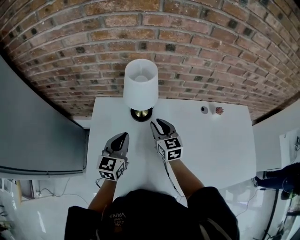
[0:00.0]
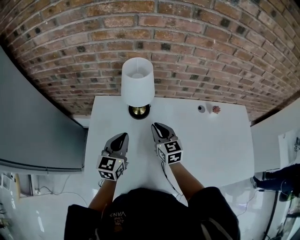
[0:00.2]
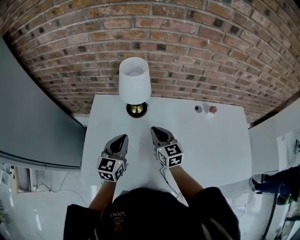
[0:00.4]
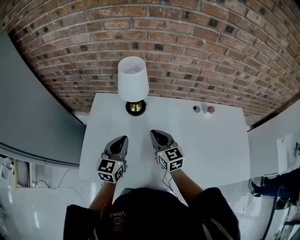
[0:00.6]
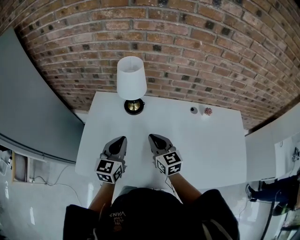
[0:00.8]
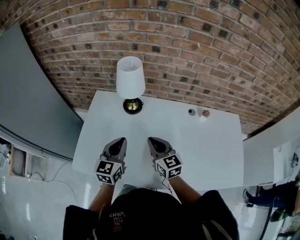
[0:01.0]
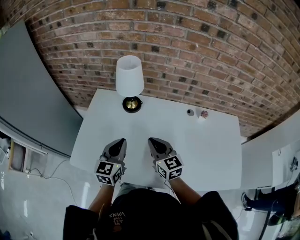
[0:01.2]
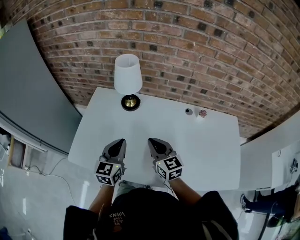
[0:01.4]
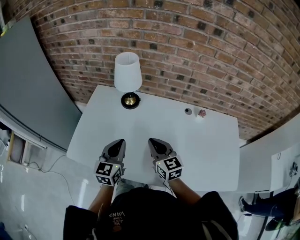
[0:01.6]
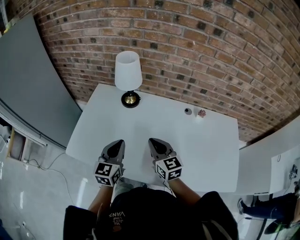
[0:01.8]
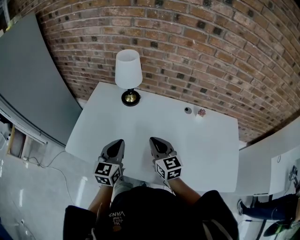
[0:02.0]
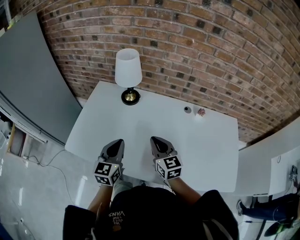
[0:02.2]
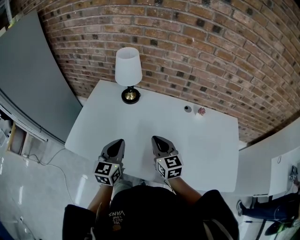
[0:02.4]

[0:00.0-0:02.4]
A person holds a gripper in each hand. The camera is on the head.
0:00.0 to 0:01.2: The left gripper shifts about 15 cm backward and to the right; the right gripper is displaced backward by roughly 20 cm, and closes.
0:01.2 to 0:02.4: The right gripper shifts approximately 5 cm to the right; the left gripper is displaced backward by approximately 5 cm.

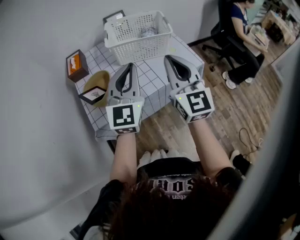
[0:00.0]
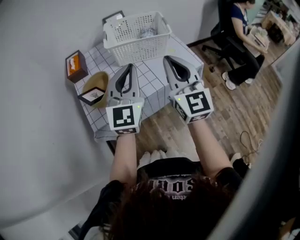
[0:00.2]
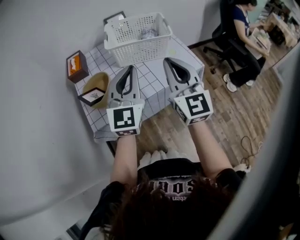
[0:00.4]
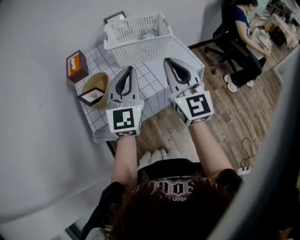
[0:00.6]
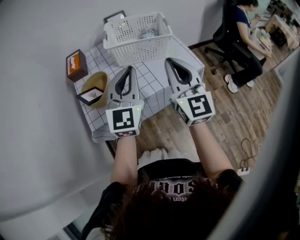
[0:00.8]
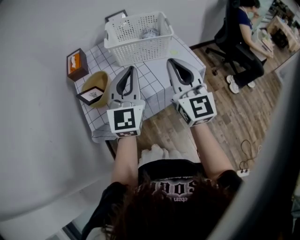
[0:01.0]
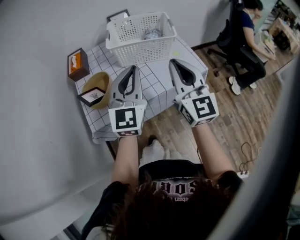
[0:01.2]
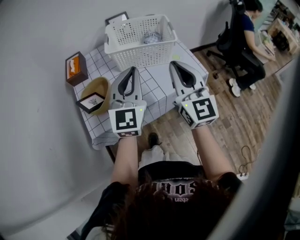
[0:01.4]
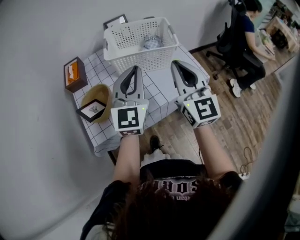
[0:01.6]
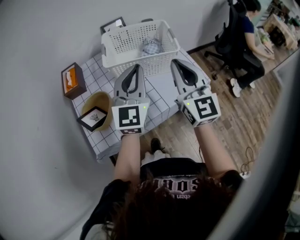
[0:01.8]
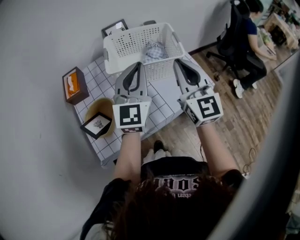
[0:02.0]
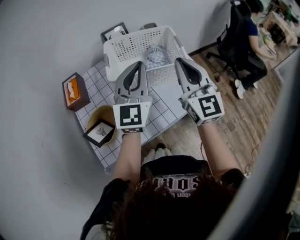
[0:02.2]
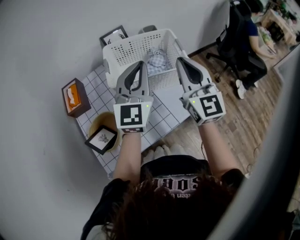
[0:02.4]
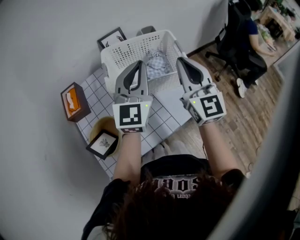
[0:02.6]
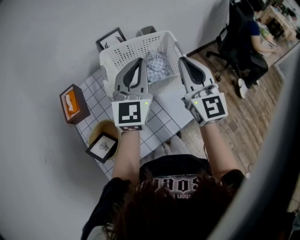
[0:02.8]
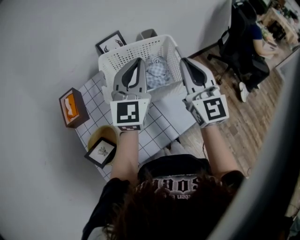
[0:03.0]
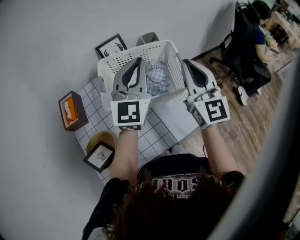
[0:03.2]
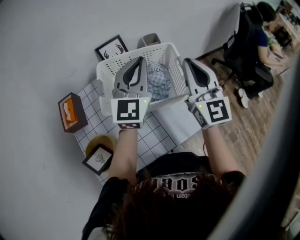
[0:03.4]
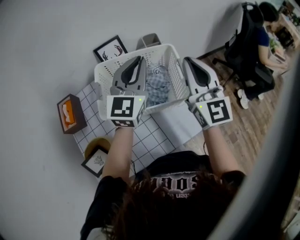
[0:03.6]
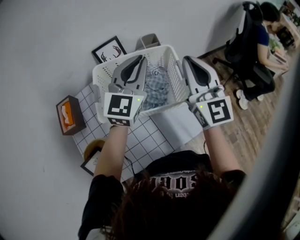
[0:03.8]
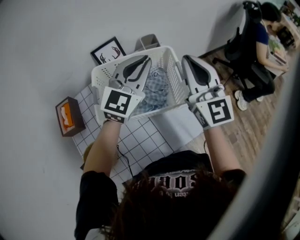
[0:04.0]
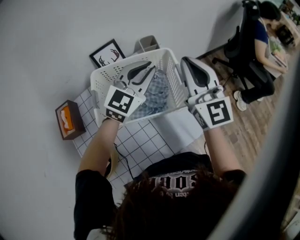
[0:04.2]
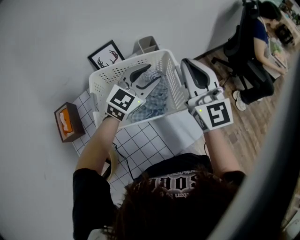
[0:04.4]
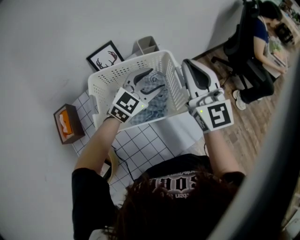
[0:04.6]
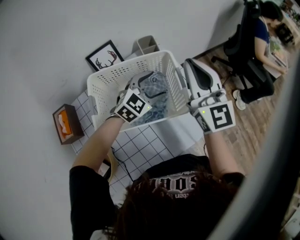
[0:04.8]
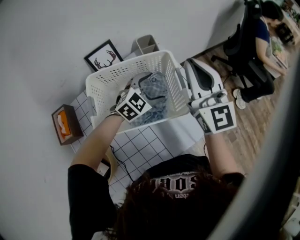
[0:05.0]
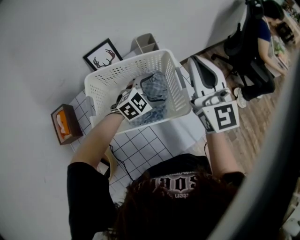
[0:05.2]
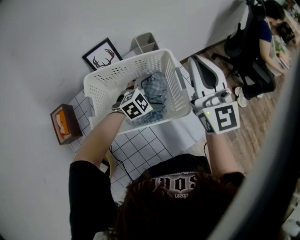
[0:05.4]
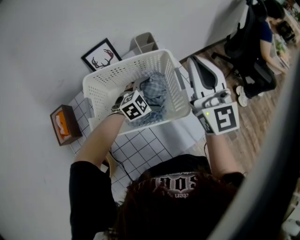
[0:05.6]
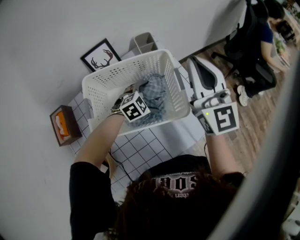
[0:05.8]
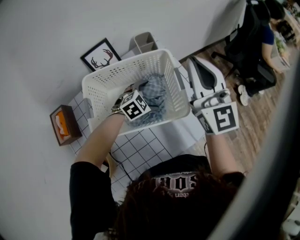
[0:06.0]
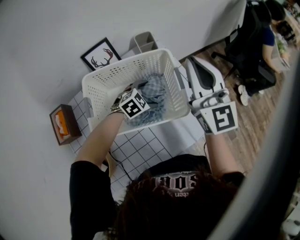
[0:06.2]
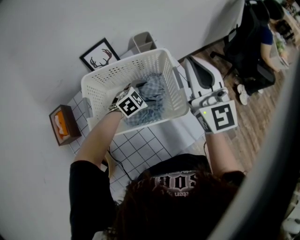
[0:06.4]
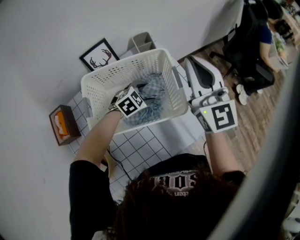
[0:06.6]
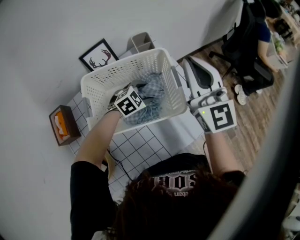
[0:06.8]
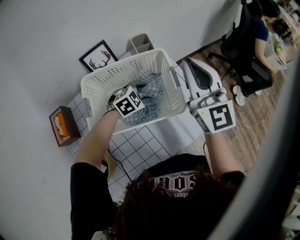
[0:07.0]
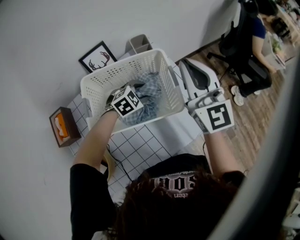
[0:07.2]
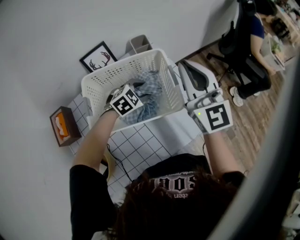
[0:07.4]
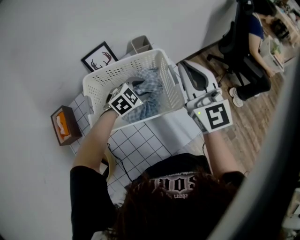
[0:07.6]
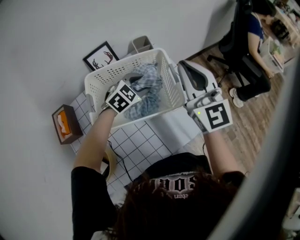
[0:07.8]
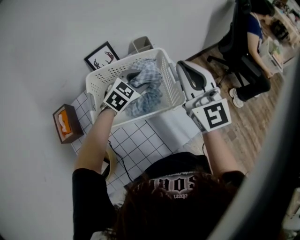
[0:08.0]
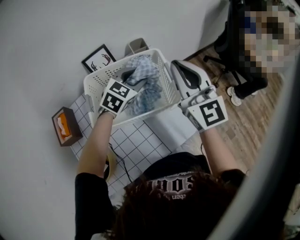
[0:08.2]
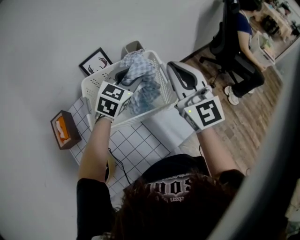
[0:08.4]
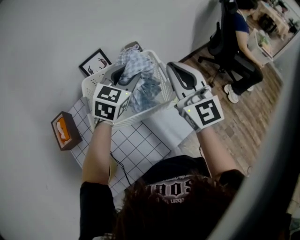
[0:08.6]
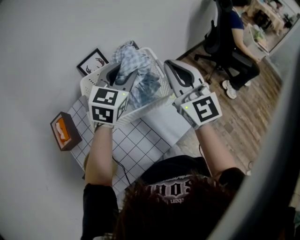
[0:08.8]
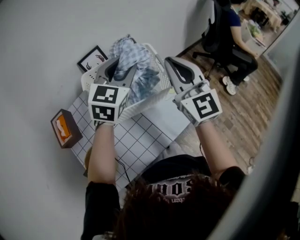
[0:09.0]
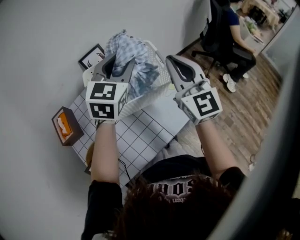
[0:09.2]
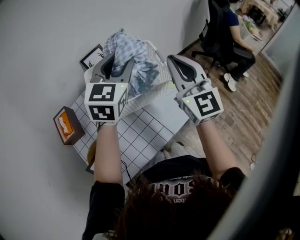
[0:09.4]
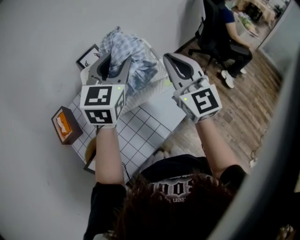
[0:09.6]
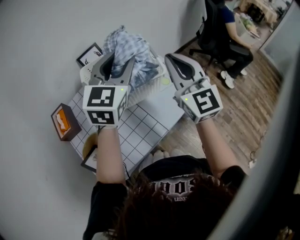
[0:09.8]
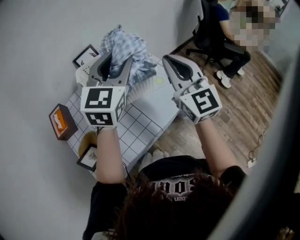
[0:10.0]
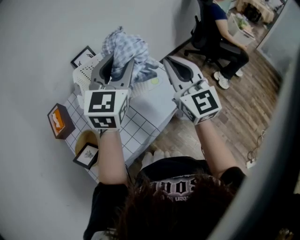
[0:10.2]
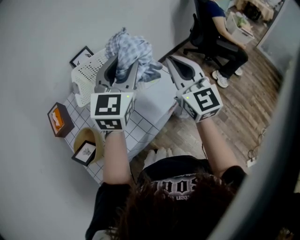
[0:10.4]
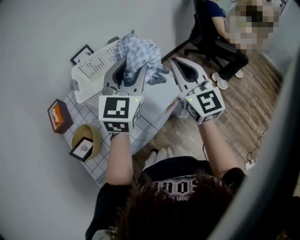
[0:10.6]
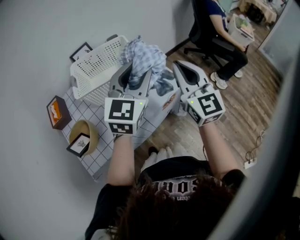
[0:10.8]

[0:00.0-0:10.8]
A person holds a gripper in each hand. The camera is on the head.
0:00.0 to 0:01.6: Both grippers travel together forward, some 10 cm.
0:01.6 to 0:03.0: The two grippers go some 20 cm forward.
0:03.0 to 0:04.6: The left gripper is displaced downward, forward and to the right by roughly 20 cm, changes its angle by some 40 degrees, and opens up; the right gripper shifts roughly 10 cm forward.
0:04.6 to 0:06.2: The left gripper is displaced downward by some 20 cm, tilts its fingers about 30 degrees downward, and opens.
0:06.2 to 0:07.8: The left gripper goes roughly 10 cm upward, and closes its fingers.
0:07.8 to 0:09.2: The left gripper shifts approximately 20 cm upward, and points its fingers some 30 degrees further upward. The right gripper shifts approximately 10 cm backward.
0:09.2 to 0:10.8: The grippers both shift to the right and backward by approximately 20 cm.

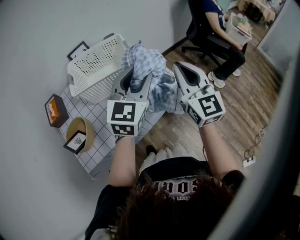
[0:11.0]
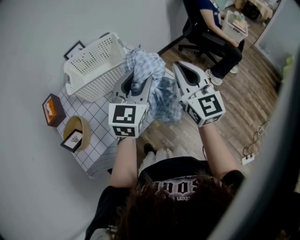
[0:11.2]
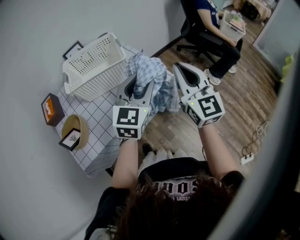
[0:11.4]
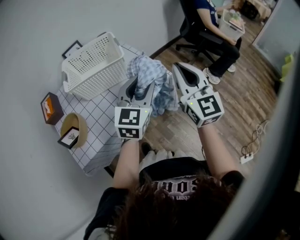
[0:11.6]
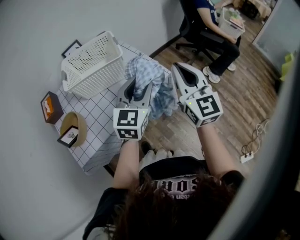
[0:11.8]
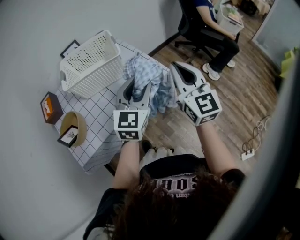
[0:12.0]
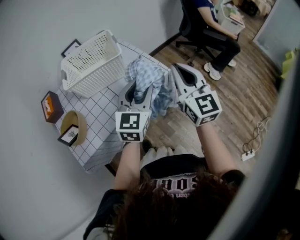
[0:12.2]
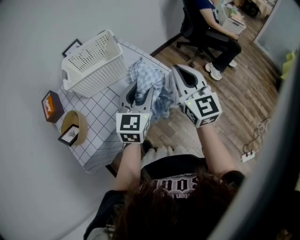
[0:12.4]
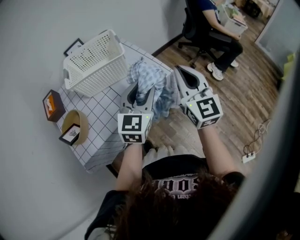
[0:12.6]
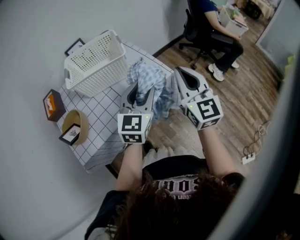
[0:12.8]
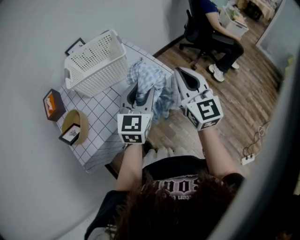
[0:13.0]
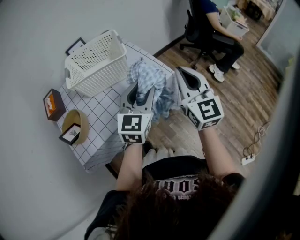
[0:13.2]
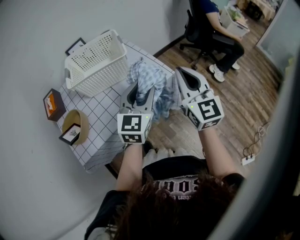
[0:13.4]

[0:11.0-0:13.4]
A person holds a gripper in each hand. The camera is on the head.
0:11.0 to 0:12.2: The right gripper shifts by about 5 cm, while the left gripper shifts approximately 10 cm downward and backward.
0:12.2 to 0:13.4: Both grippers stay put.

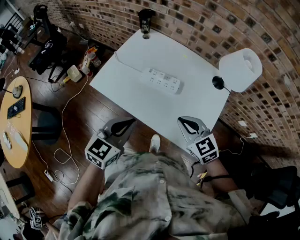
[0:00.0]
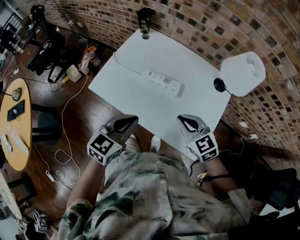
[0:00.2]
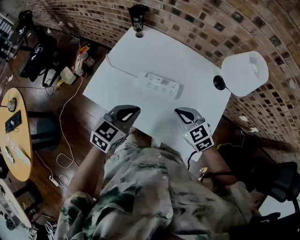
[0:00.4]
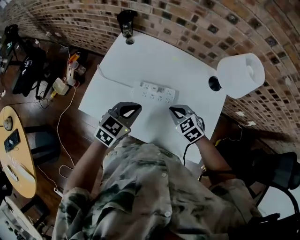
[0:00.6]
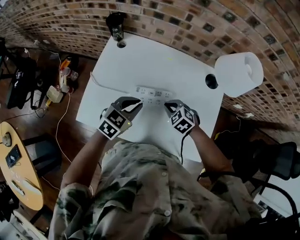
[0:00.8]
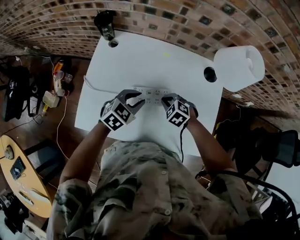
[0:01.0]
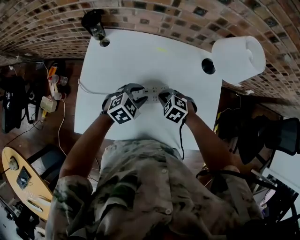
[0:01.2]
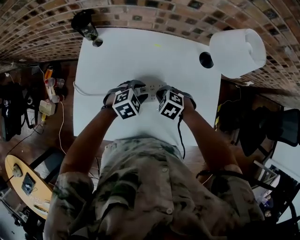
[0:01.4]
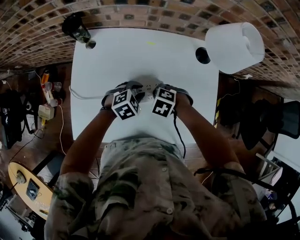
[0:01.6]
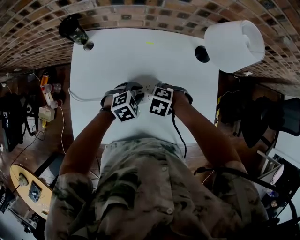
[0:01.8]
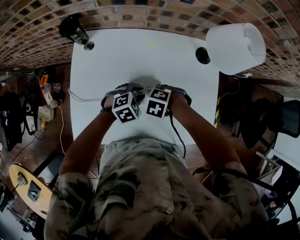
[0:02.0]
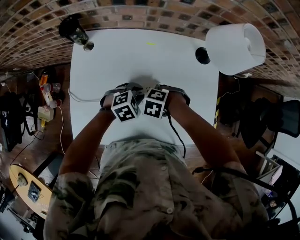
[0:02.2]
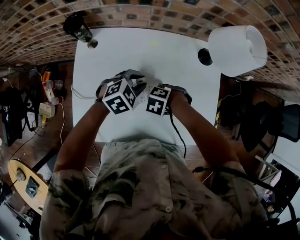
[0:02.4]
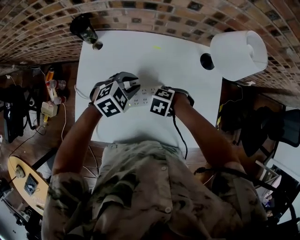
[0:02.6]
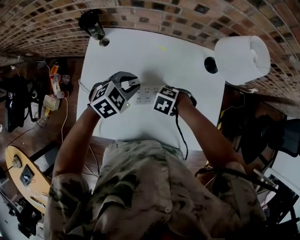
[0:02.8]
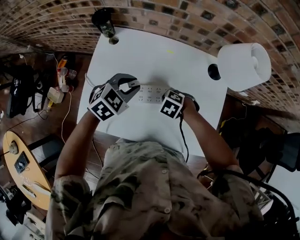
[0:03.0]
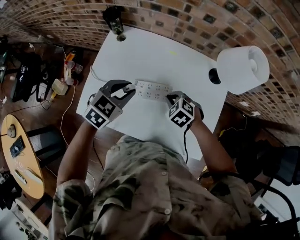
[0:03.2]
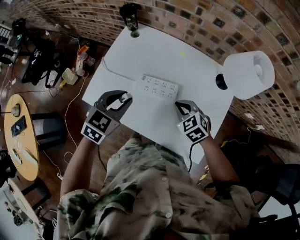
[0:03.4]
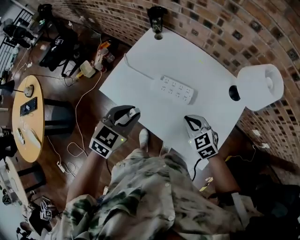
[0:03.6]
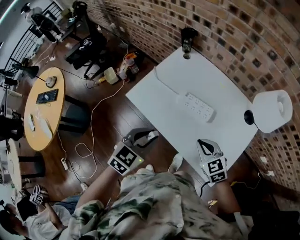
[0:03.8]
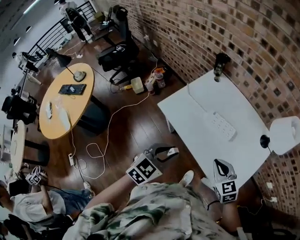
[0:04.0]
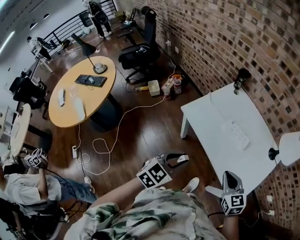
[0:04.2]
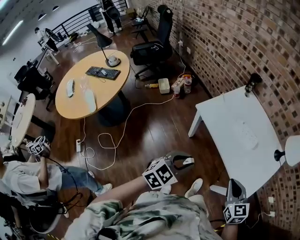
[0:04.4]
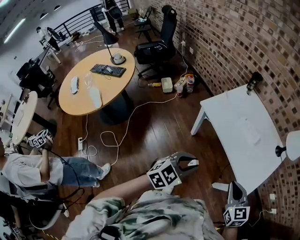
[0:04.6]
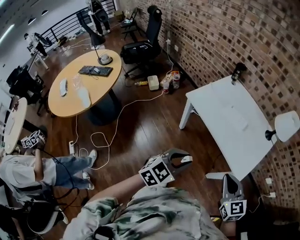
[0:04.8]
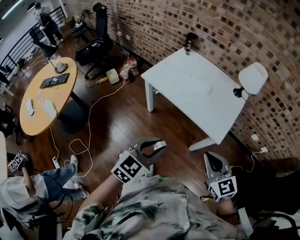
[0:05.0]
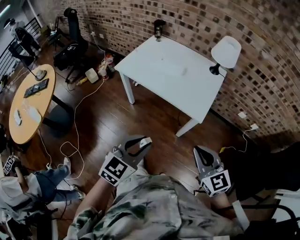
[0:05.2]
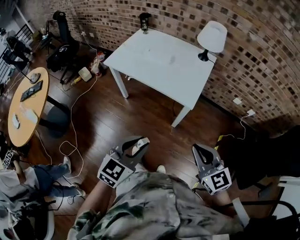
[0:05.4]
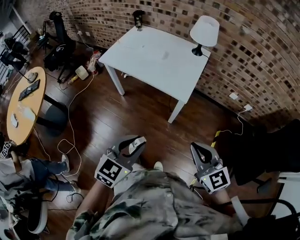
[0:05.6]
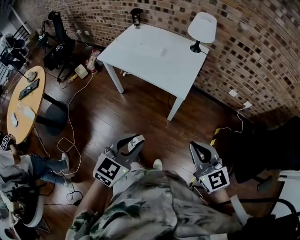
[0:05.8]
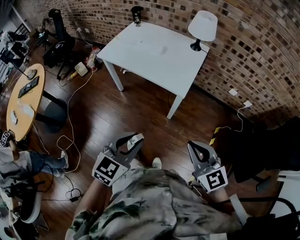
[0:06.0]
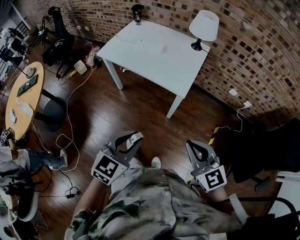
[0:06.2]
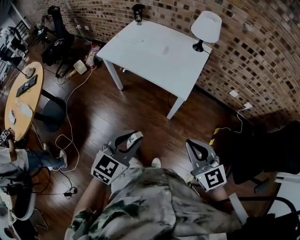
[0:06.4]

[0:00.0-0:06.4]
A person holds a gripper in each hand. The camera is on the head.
0:00.0 to 0:01.6: The right gripper heads downward, covering some 20 cm, and tilts its fingers about 50 degrees downward. Meanwhile the left gripper changes place by some 35 cm, angles its fingers downward, by roughly 30 degrees, and opens up.
0:01.6 to 0:03.2: The right gripper moves upward, roughly 5 cm. Meanwhile the left gripper shifts roughly 15 cm upward, and rotates about 30 degrees.
0:03.2 to 0:04.8: Both grippers are carried backward, approximately 50 cm. The left gripper changes its angle by some 30 degrees, while the right gripper shifts about 25 cm upward, and angles its fingers upward, by some 40 degrees.
0:04.8 to 0:06.4: The grippers both shift to the right and backward by some 25 cm.

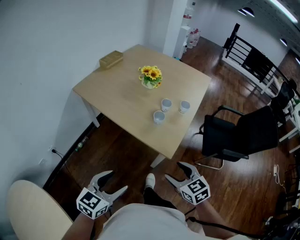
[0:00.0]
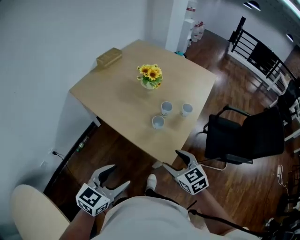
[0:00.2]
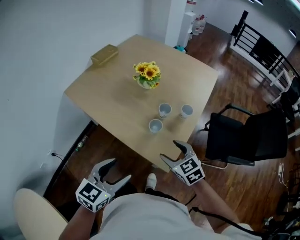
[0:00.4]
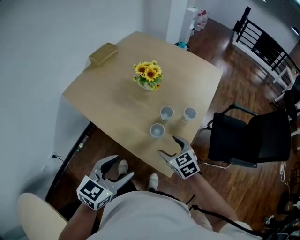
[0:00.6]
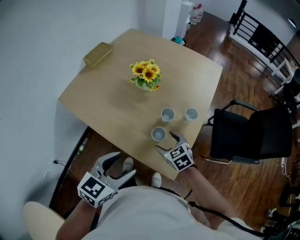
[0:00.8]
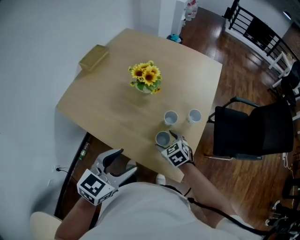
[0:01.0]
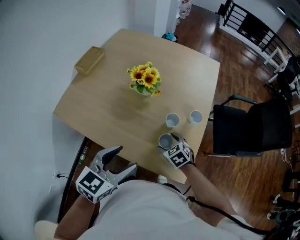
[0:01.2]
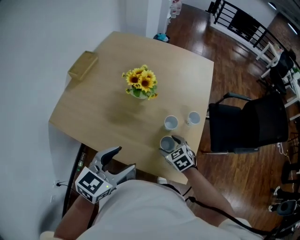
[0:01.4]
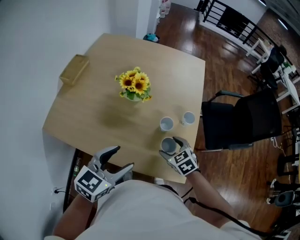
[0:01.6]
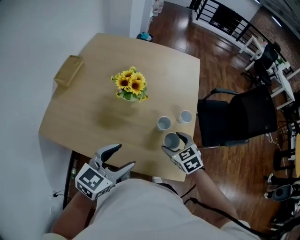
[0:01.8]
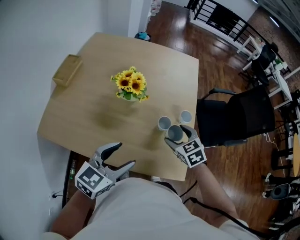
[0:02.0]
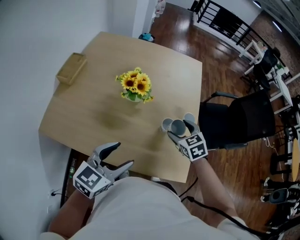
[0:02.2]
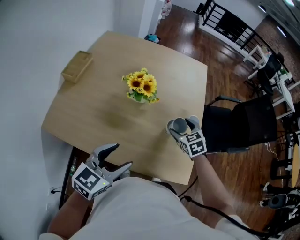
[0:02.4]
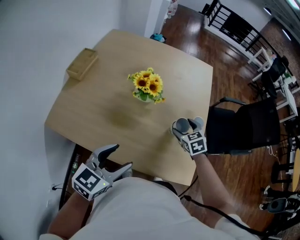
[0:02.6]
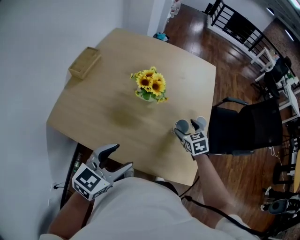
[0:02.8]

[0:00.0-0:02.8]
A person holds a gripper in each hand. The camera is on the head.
0:00.0 to 0:01.4: Both grippers travel together forward, roughly 35 cm. The right gripper rotates some 20 degrees.
0:01.4 to 0:02.8: The left gripper travels to the left by roughly 10 cm. The right gripper travels forward by some 10 cm.
